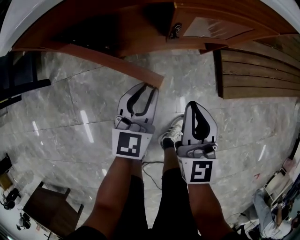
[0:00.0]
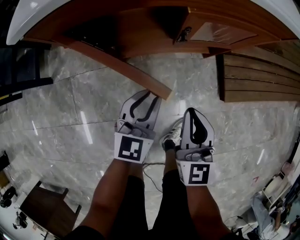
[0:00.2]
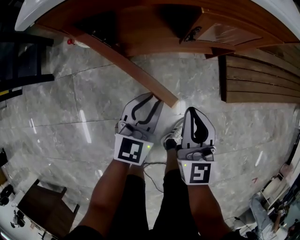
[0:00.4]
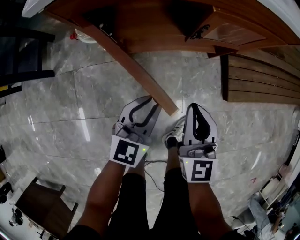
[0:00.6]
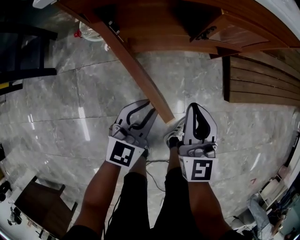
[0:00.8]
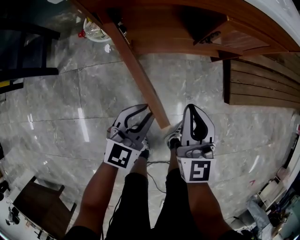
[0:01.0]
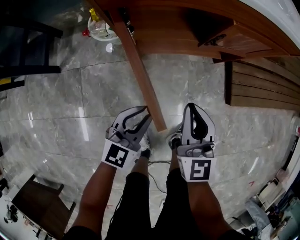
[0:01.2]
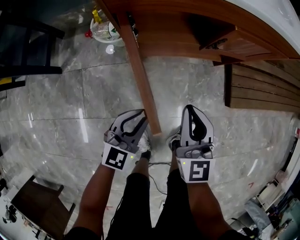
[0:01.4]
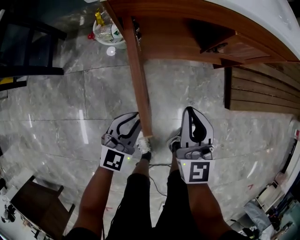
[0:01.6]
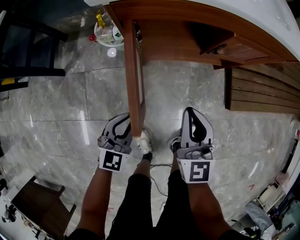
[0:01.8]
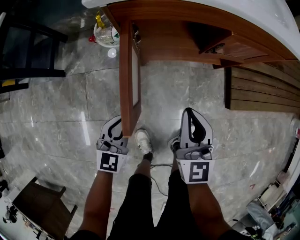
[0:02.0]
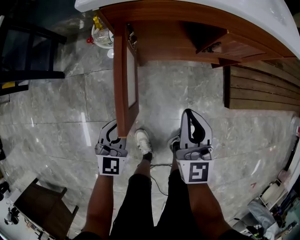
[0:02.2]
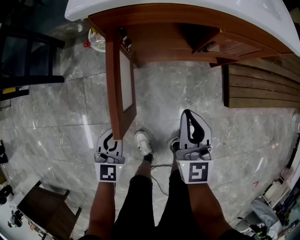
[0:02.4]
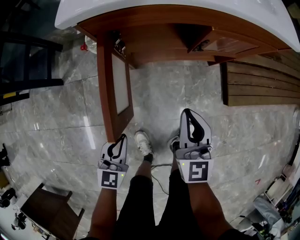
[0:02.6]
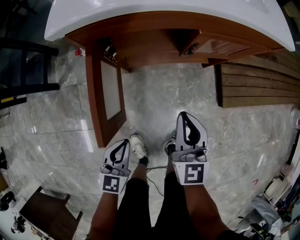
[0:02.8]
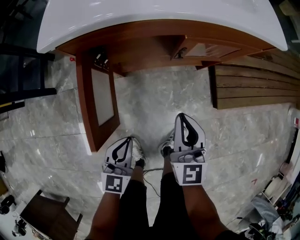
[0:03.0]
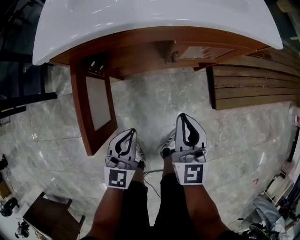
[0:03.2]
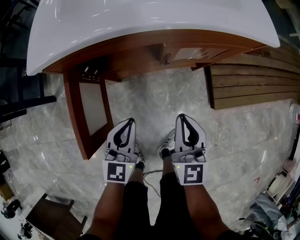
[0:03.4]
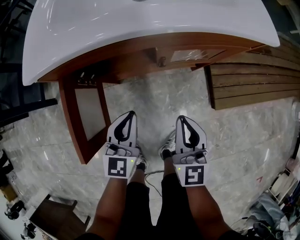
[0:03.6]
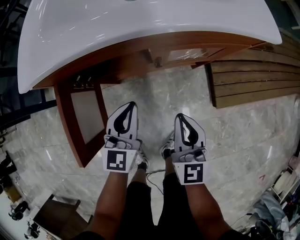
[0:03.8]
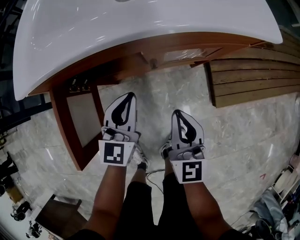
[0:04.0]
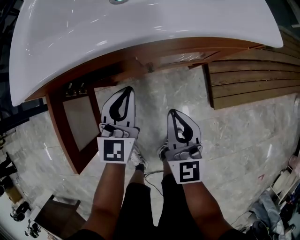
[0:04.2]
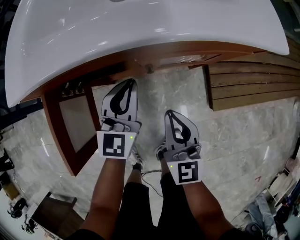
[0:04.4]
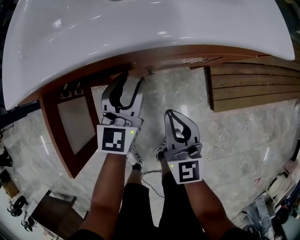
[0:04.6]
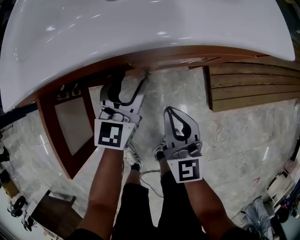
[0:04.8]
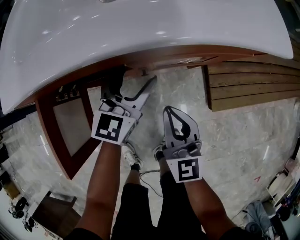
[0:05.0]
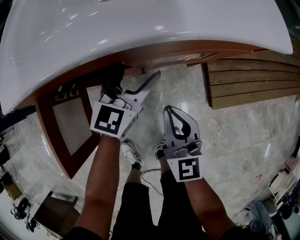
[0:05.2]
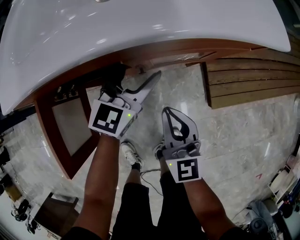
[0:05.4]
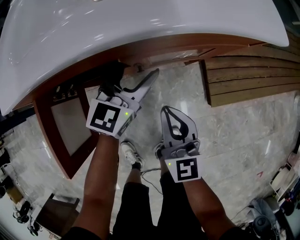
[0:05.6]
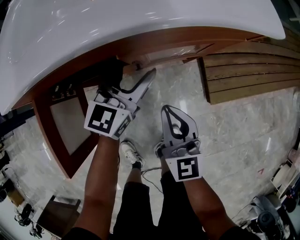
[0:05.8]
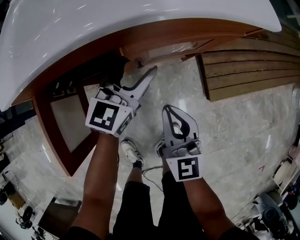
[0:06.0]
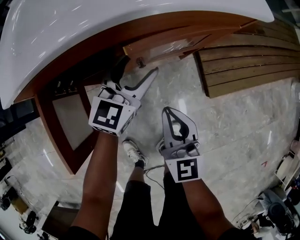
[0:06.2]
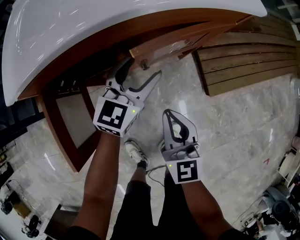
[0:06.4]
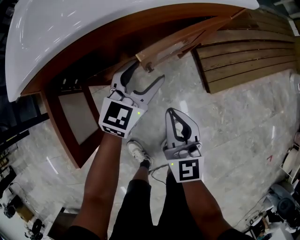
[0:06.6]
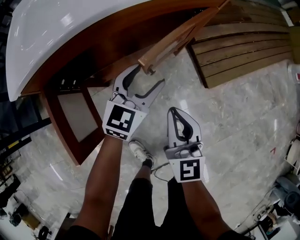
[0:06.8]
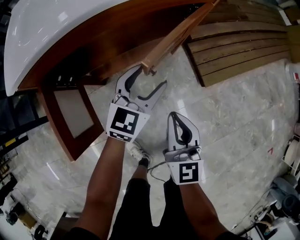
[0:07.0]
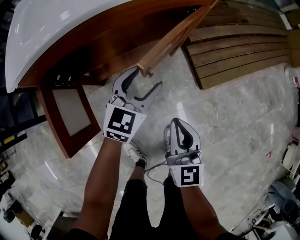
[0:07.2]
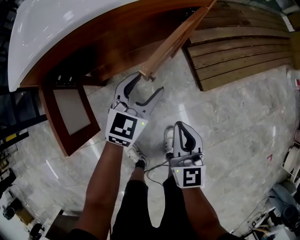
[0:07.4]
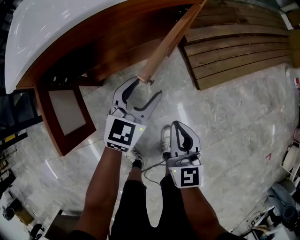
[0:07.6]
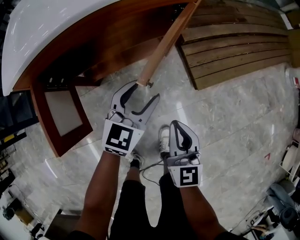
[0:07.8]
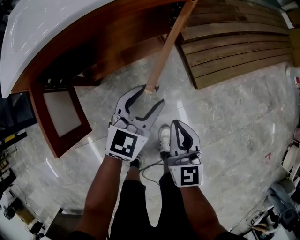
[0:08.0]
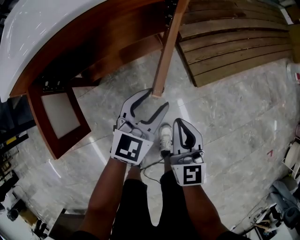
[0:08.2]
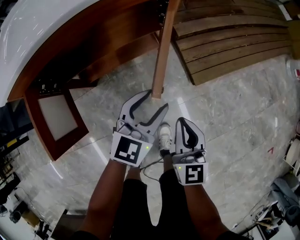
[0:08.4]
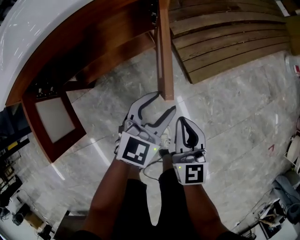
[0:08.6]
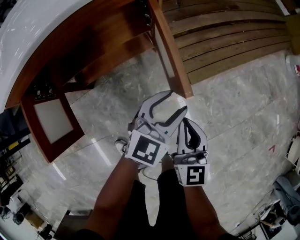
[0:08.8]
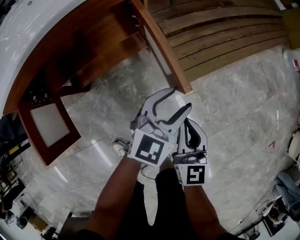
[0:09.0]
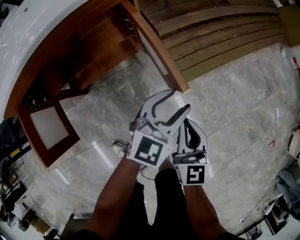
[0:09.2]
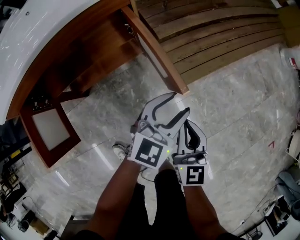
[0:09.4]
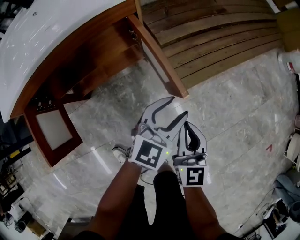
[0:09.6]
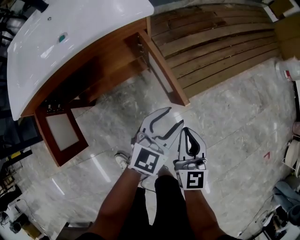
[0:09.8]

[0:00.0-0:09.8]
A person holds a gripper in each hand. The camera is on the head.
0:00.0 to 0:01.4: The right gripper goes some 15 cm to the left and backward; the left gripper shifts some 20 cm backward and to the left.
0:01.4 to 0:02.8: The left gripper changes its angle by about 20 degrees. Meanwhile the right gripper heads to the right, covering some 5 cm.
0:02.8 to 0:04.2: The right gripper shifts some 15 cm to the right and forward. The left gripper travels forward and to the right by some 30 cm.
0:04.2 to 0:05.6: The left gripper shifts some 10 cm forward and to the right, and opens.
0:05.6 to 0:07.0: The right gripper shifts approximately 10 cm backward; the left gripper goes roughly 15 cm backward and to the right.
0:07.0 to 0:08.4: The two grippers go approximately 10 cm to the right.
0:08.4 to 0:09.8: The grippers both shift to the right and upward by approximately 10 cm.

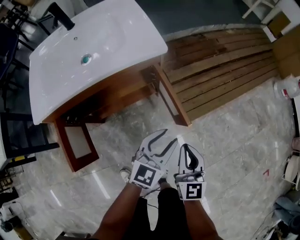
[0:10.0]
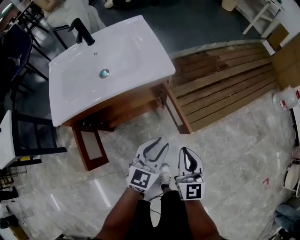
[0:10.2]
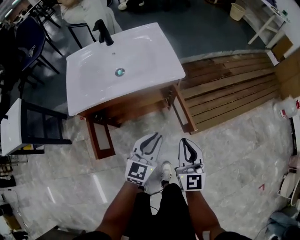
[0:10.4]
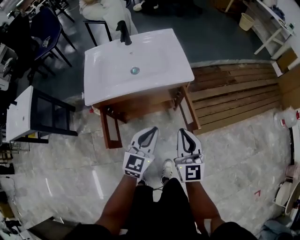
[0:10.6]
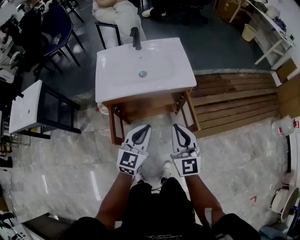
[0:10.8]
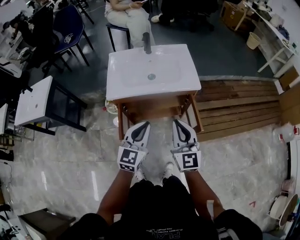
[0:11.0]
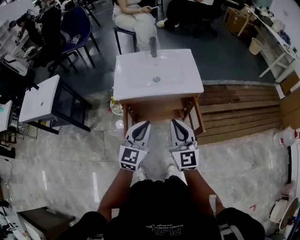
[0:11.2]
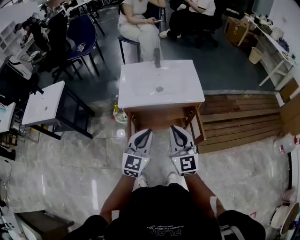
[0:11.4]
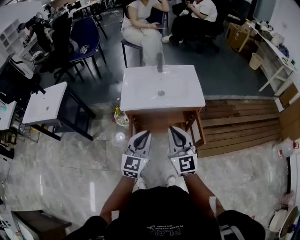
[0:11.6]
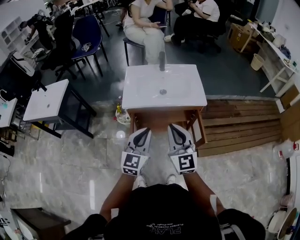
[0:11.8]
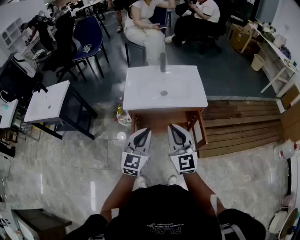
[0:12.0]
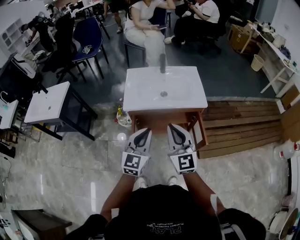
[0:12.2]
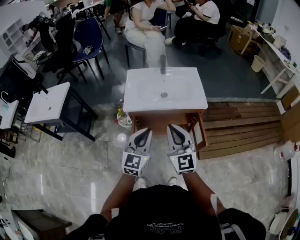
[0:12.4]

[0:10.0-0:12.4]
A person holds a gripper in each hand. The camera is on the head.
0:10.0 to 0:11.2: The two grippers go some 30 cm upward. The left gripper rotates about 30 degrees, and closes up, while the right gripper changes its angle by approximately 30 degrees.
0:11.2 to 0:12.4: The right gripper shifts about 5 cm to the left.

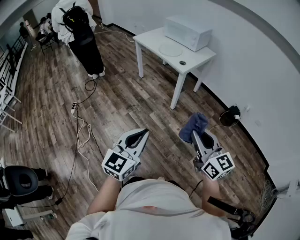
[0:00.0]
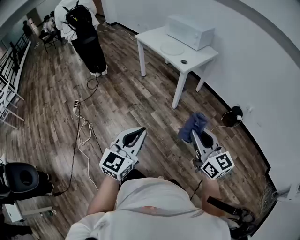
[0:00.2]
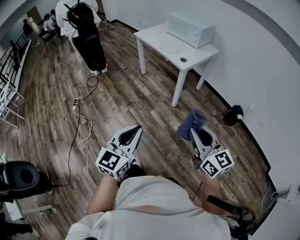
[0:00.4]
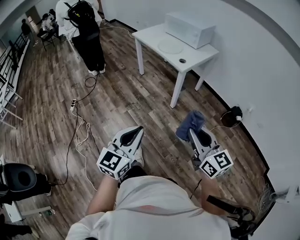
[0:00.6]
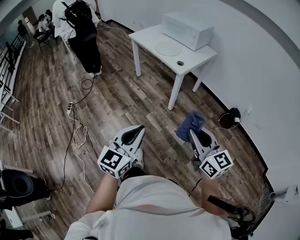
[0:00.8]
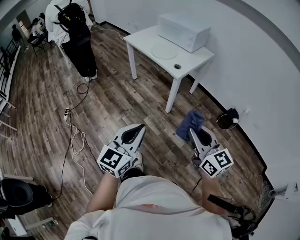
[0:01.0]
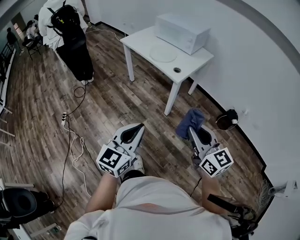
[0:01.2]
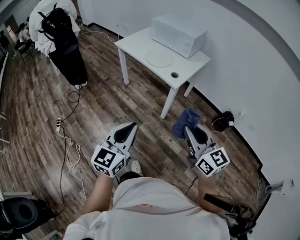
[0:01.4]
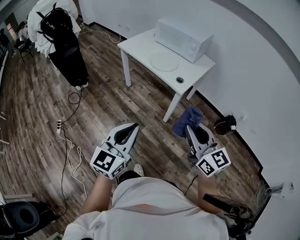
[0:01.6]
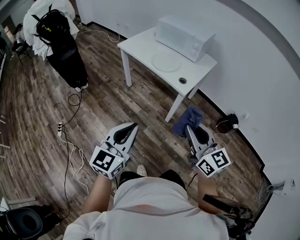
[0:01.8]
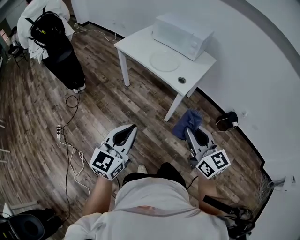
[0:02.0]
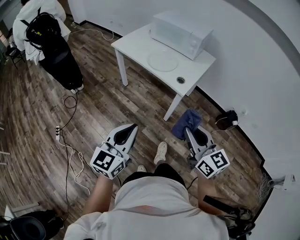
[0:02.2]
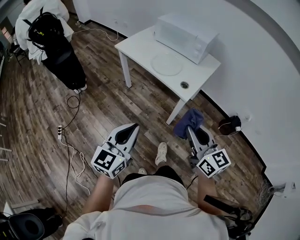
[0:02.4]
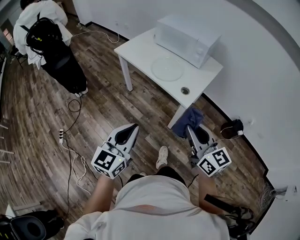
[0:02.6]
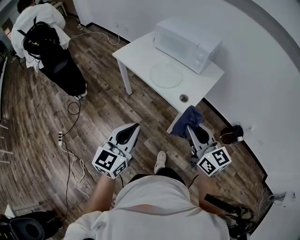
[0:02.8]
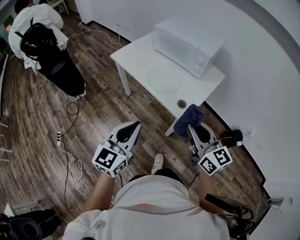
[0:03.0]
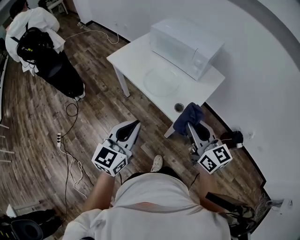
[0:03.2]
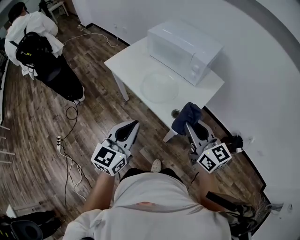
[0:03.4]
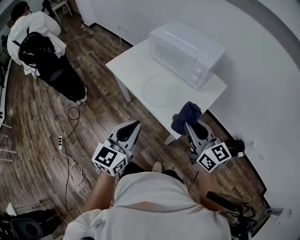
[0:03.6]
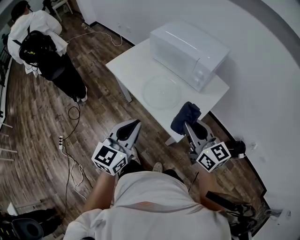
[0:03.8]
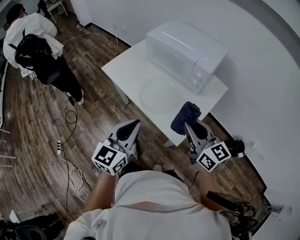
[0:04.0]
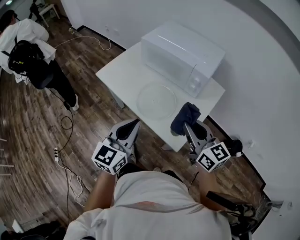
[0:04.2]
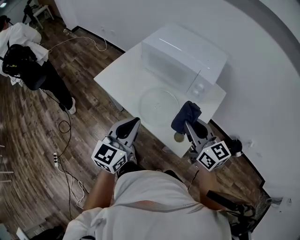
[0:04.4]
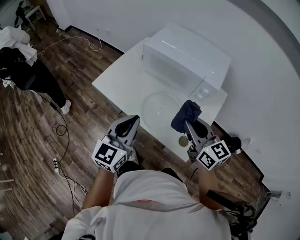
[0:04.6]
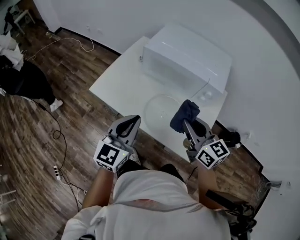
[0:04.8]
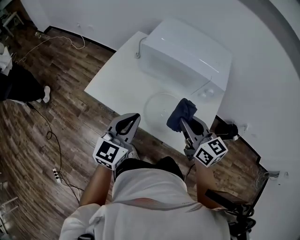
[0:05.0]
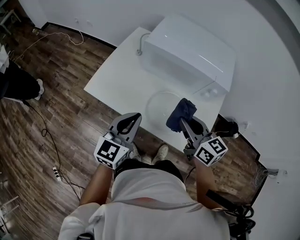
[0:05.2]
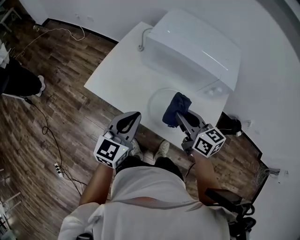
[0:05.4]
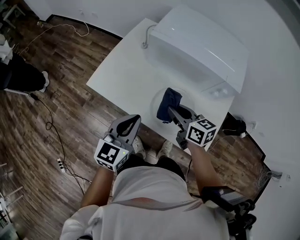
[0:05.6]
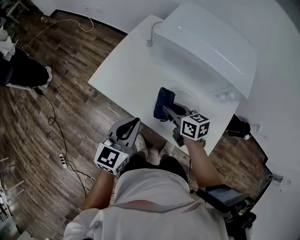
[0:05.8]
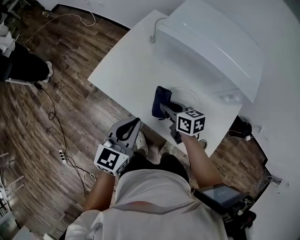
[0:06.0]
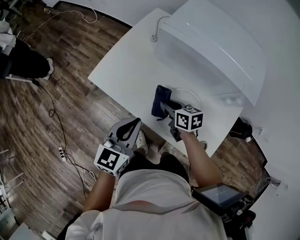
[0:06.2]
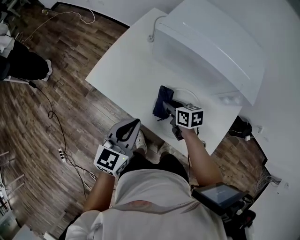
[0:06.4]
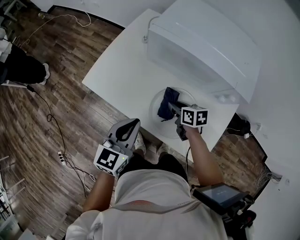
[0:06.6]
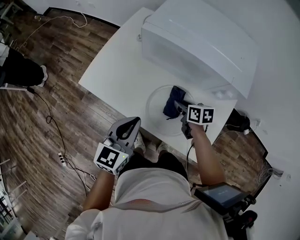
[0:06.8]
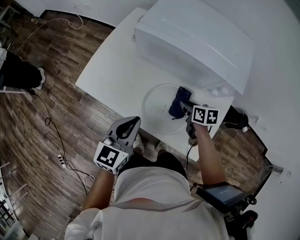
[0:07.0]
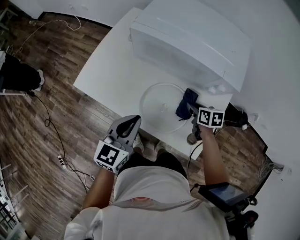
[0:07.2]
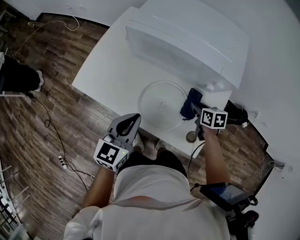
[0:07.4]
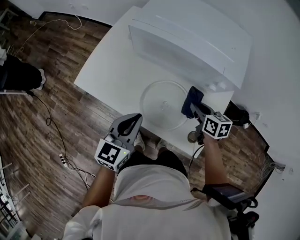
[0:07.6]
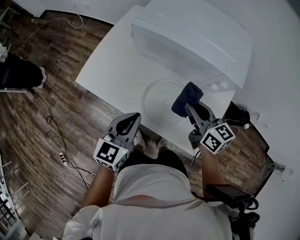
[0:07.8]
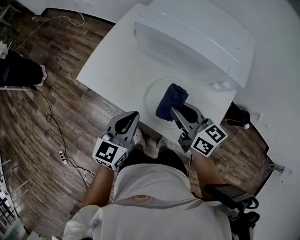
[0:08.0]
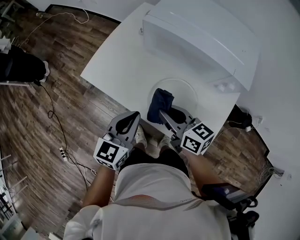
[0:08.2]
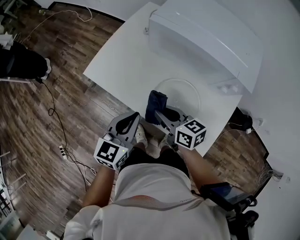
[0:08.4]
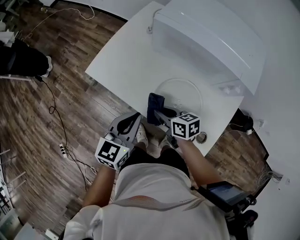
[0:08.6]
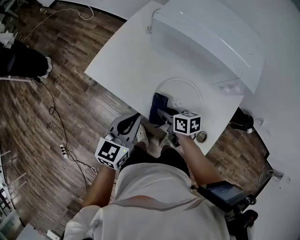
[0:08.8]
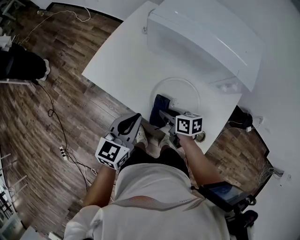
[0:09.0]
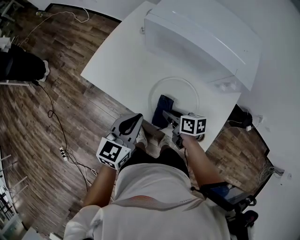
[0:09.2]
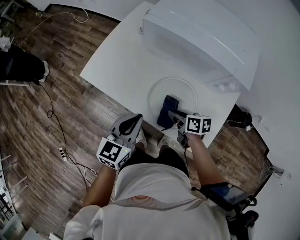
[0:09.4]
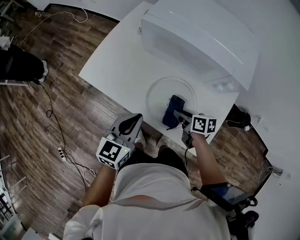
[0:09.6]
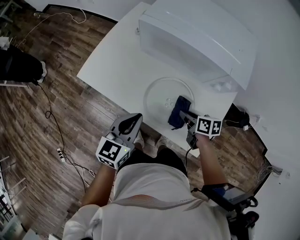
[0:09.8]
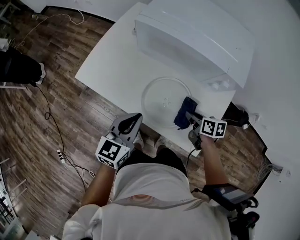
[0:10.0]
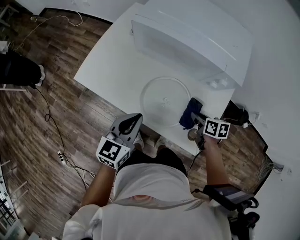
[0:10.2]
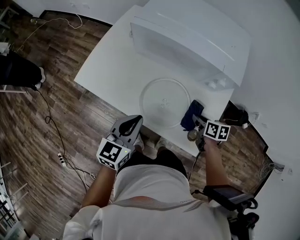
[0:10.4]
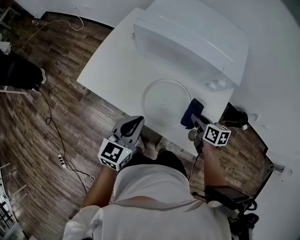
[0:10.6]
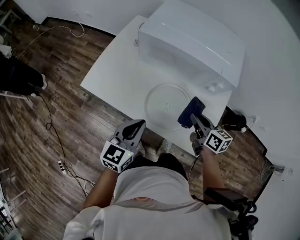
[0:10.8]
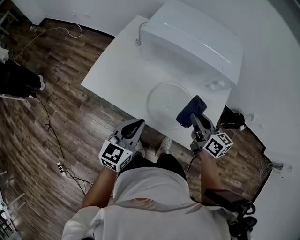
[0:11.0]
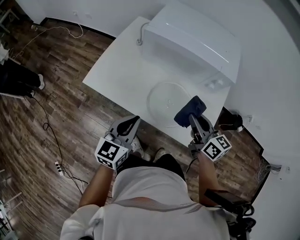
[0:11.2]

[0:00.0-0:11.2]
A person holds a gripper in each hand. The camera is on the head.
0:00.0 to 0:01.6: Both grippers travel together forward, approximately 30 cm.
0:01.6 to 0:03.2: The grippers both shift forward by some 30 cm.
0:03.2 to 0:04.8: The grippers both shift forward by roughly 30 cm.
0:04.8 to 0:06.4: The right gripper travels downward and forward by roughly 30 cm, and swivels approximately 40 degrees; the left gripper goes roughly 15 cm downward and forward.
0:06.4 to 0:08.0: The right gripper moves upward, about 20 cm, goes to the right and returns, about 20 cm each way, and swivels some 30 degrees.
0:08.0 to 0:09.6: The right gripper shifts some 20 cm downward, and changes its angle by some 40 degrees.
0:09.6 to 0:11.2: The left gripper moves approximately 5 cm. Meanwhile the right gripper goes about 20 cm upward, and swivels approximately 40 degrees.
